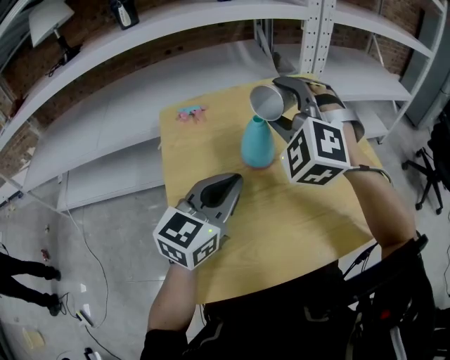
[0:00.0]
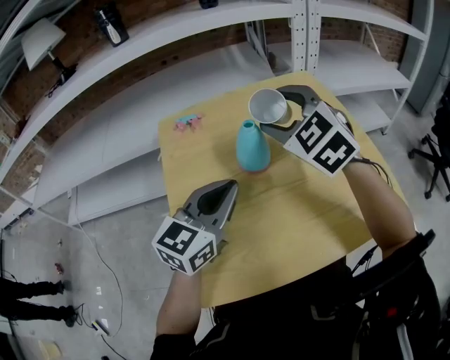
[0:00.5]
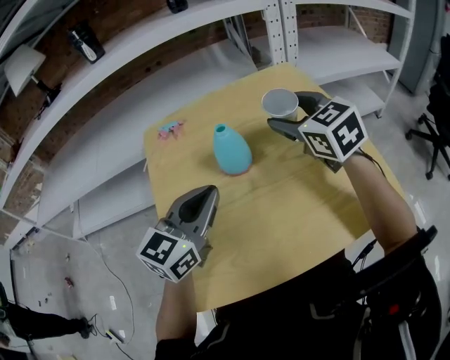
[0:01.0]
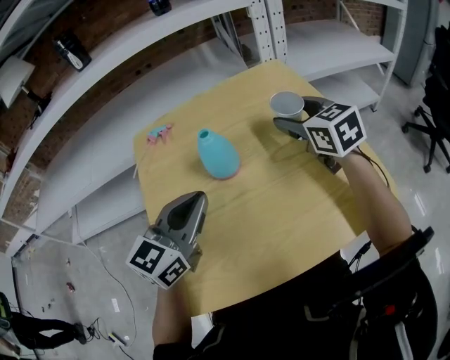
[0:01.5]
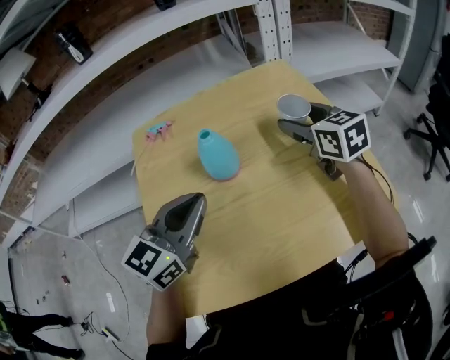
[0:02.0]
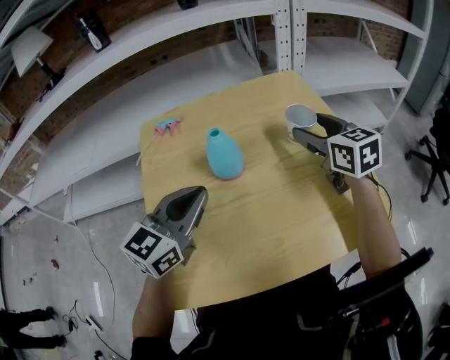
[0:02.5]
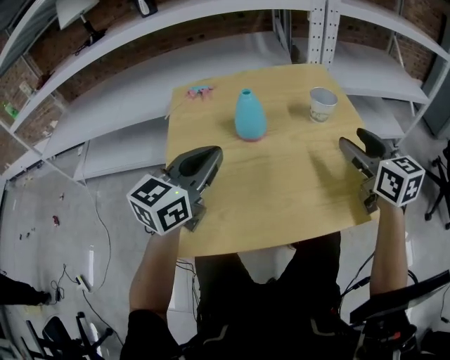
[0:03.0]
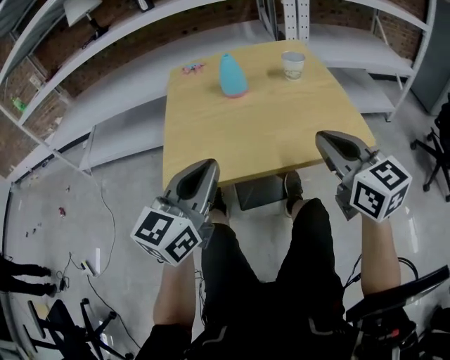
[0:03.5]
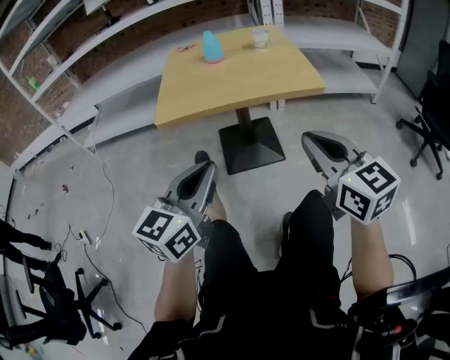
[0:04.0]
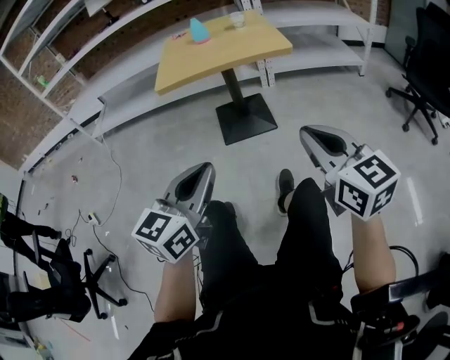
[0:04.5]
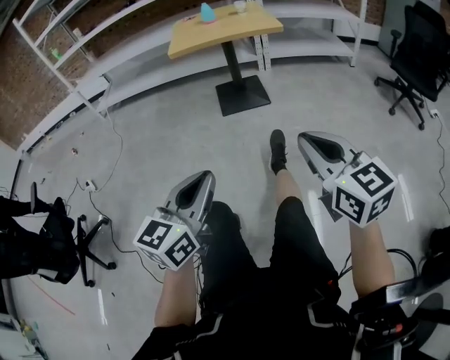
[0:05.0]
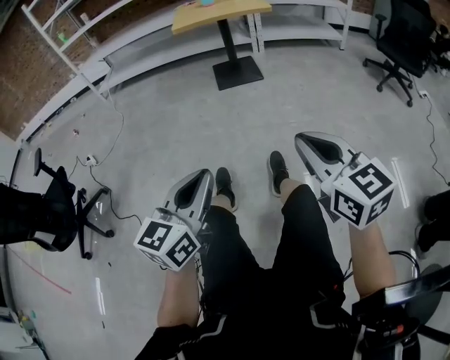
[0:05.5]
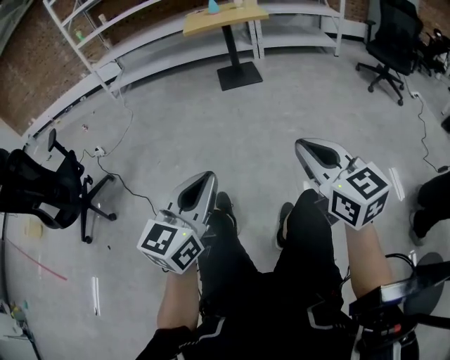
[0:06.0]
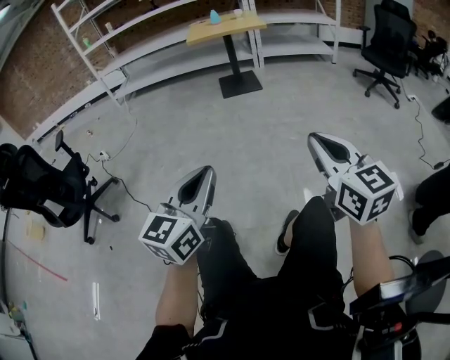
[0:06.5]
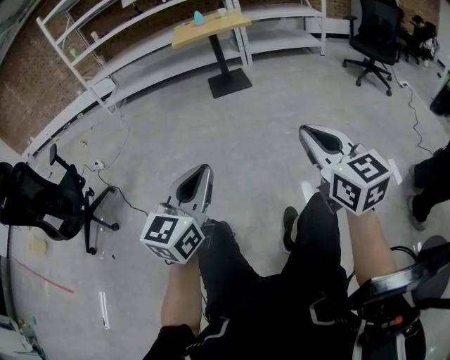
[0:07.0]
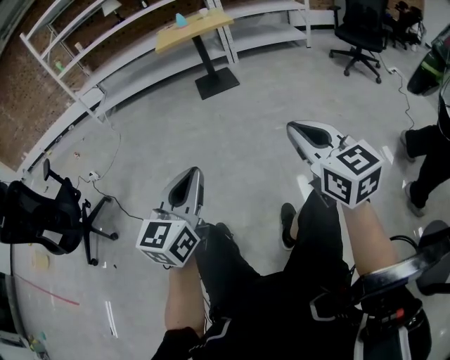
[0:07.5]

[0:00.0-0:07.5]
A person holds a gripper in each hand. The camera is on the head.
0:00.0 to 0:02.0: The right gripper moves to the right and downward, some 20 cm, and rolls clockwise, seen from behind, by some 70 degrees.
0:02.0 to 0:04.0: Both grippers are carried backward, about 50 cm. The right gripper closes up.
0:04.0 to 0:05.5: The pair of grippers is taken backward, about 70 cm.
0:05.5 to 0:07.5: The two grippers go approximately 20 cm backward.

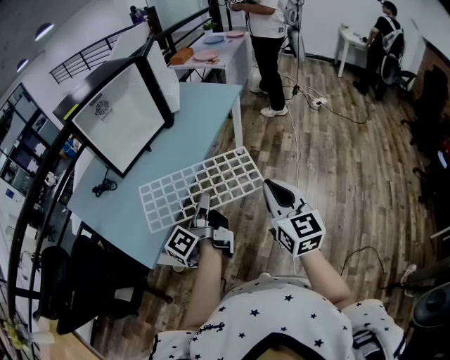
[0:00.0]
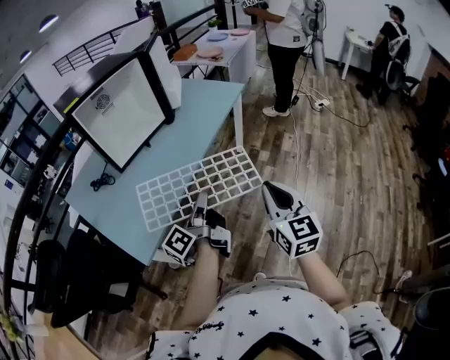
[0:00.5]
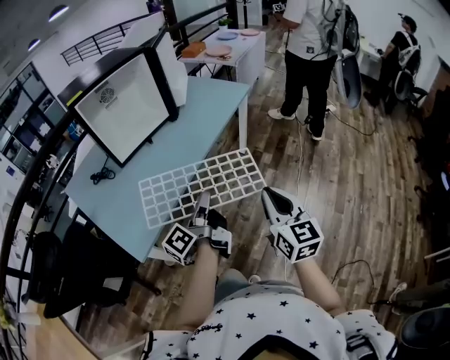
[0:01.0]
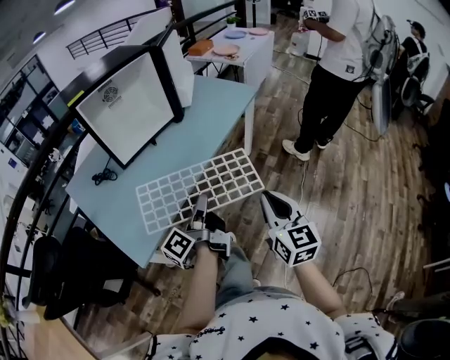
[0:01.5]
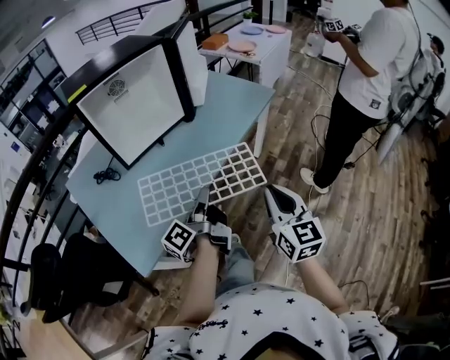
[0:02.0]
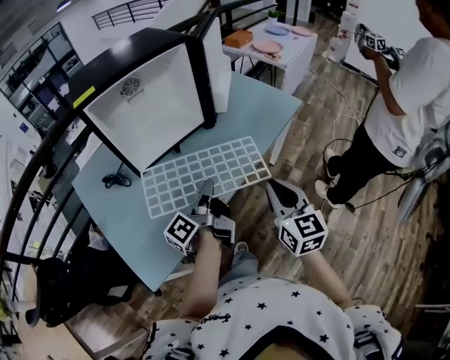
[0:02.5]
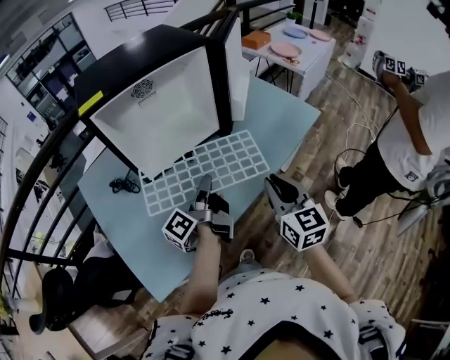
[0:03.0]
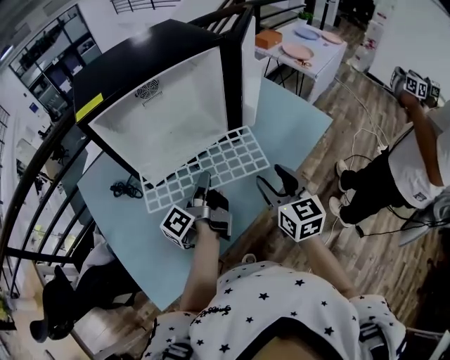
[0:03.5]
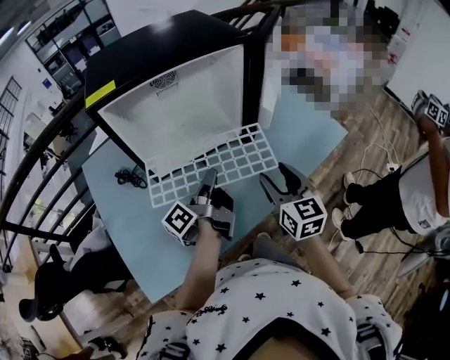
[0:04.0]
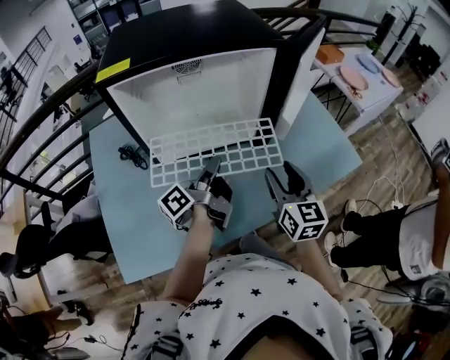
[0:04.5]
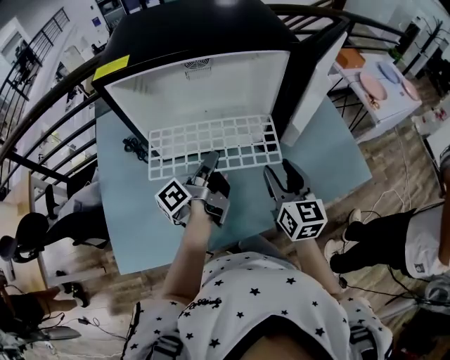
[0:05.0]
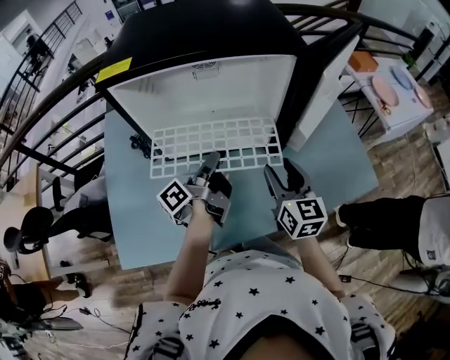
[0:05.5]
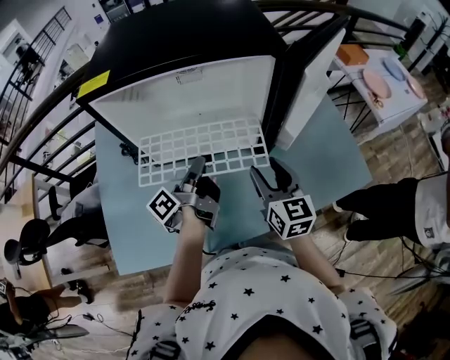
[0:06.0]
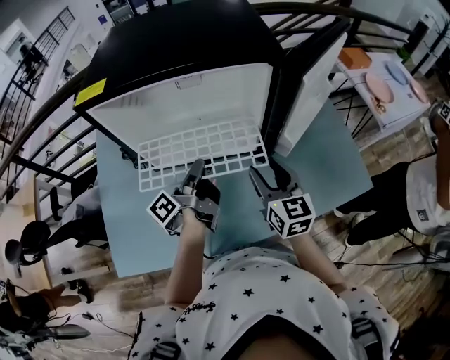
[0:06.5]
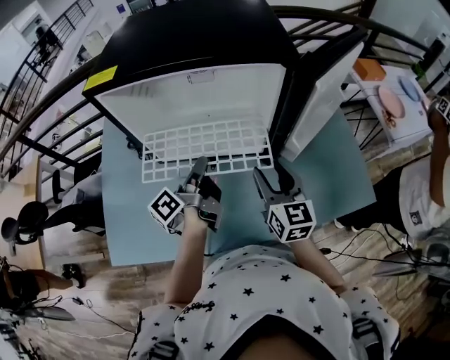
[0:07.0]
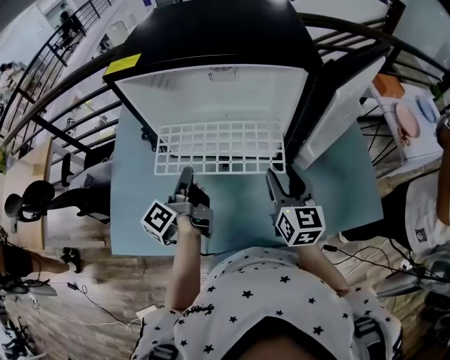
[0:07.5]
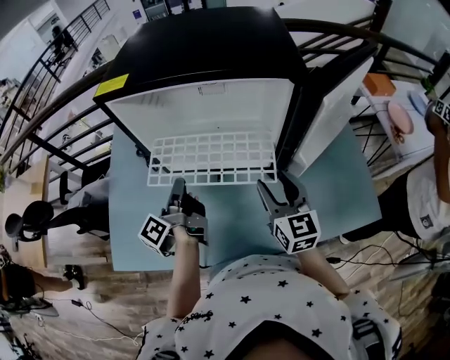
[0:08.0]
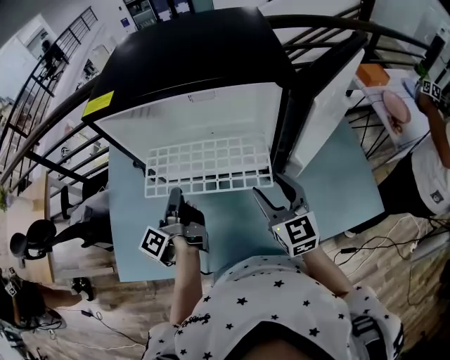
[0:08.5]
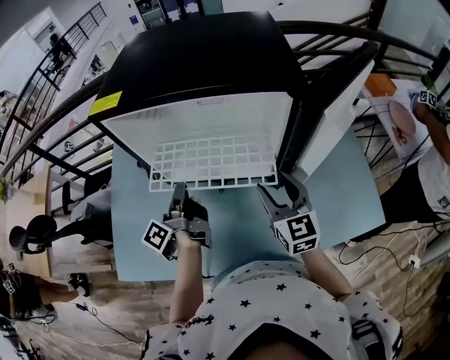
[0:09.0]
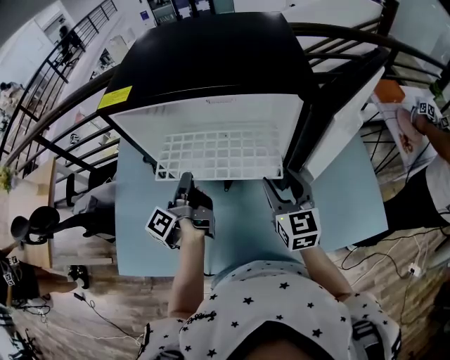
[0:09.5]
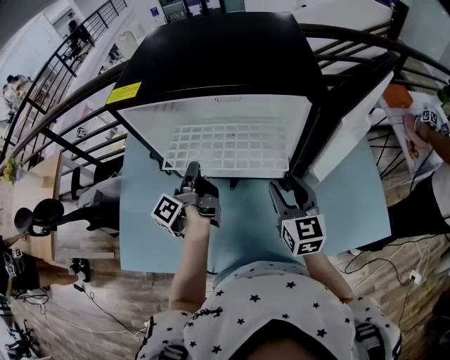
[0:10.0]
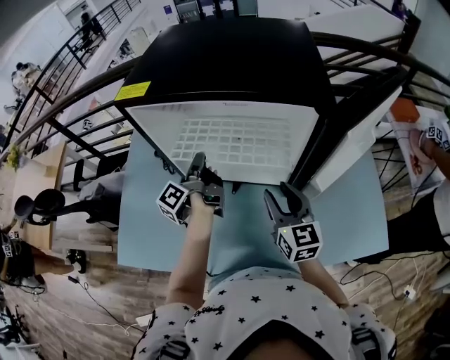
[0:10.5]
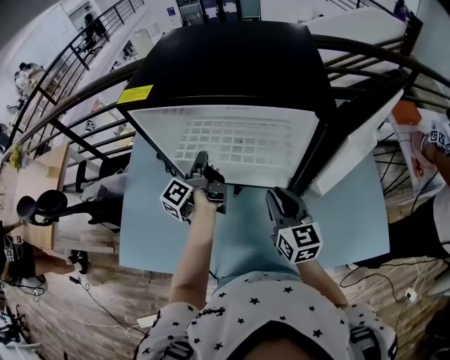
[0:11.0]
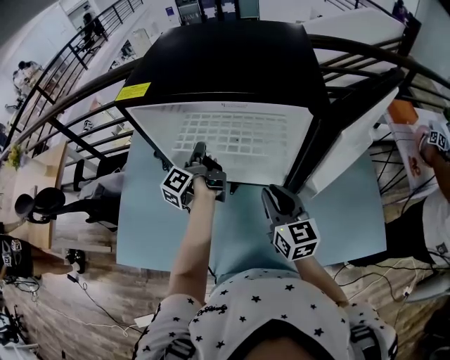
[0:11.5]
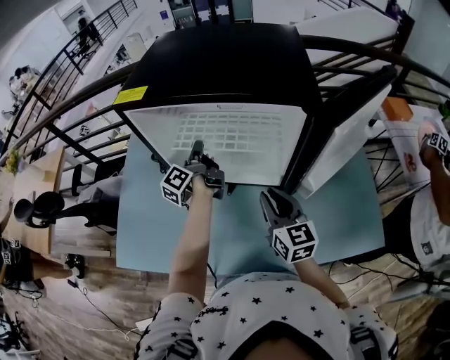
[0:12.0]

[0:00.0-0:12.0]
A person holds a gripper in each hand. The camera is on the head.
0:00.0 to 0:02.0: The right gripper shifts by about 15 cm.
0:02.0 to 0:04.0: The right gripper ends up about 35 cm from where it was, swivels some 20 degrees, and opens.
0:04.0 to 0:06.0: The right gripper changes place by roughly 10 cm.
0:10.0 to 0:12.0: The right gripper closes its fingers.

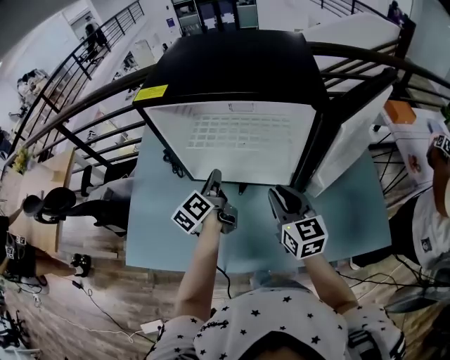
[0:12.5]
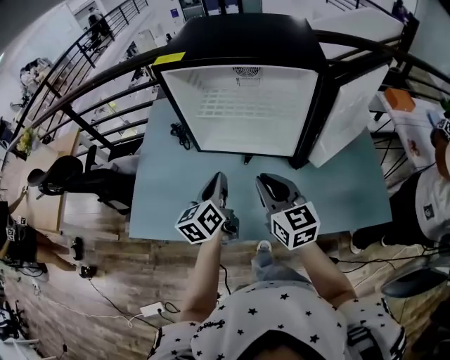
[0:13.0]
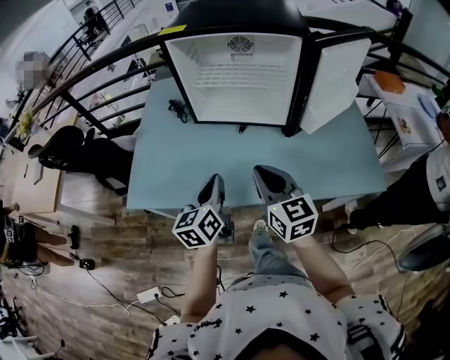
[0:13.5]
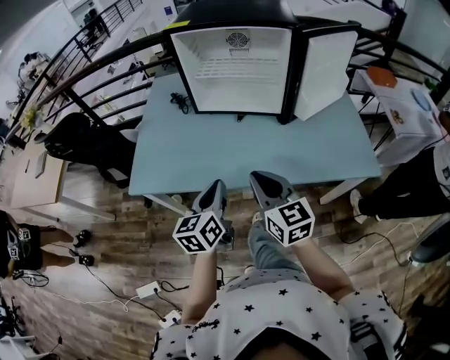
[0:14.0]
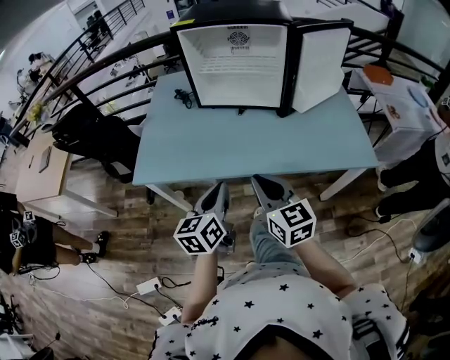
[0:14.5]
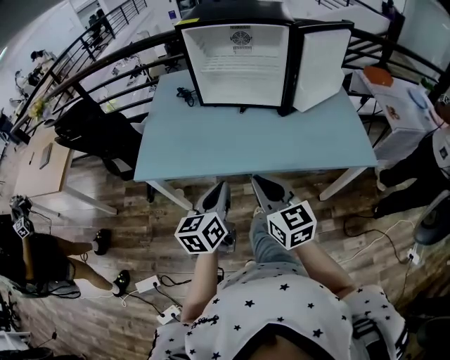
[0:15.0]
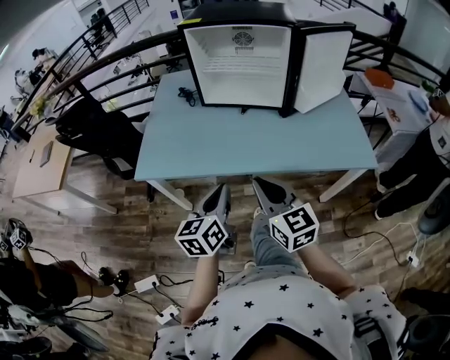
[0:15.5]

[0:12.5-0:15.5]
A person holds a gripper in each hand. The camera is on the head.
0:12.5 to 0:14.0: The right gripper shifts by some 30 cm.
0:14.0 to 0:15.5: The right gripper moves some 10 cm.

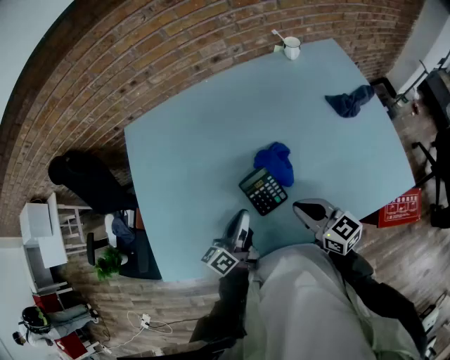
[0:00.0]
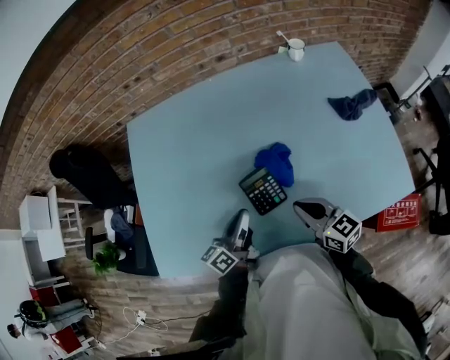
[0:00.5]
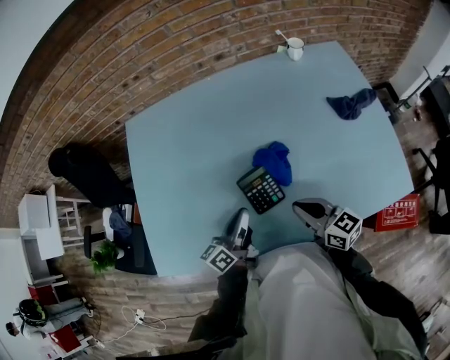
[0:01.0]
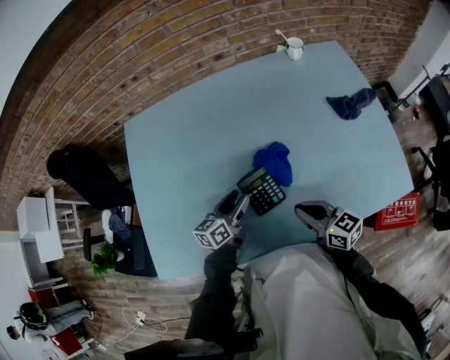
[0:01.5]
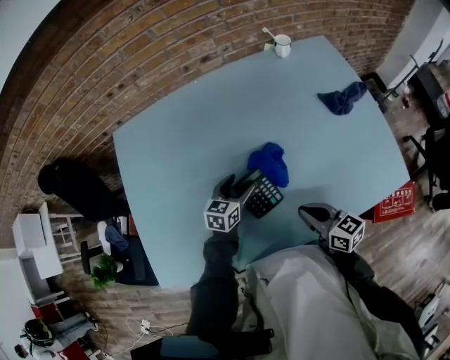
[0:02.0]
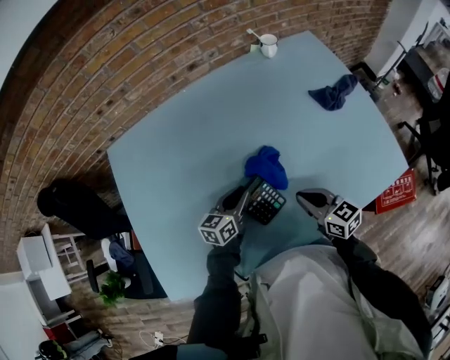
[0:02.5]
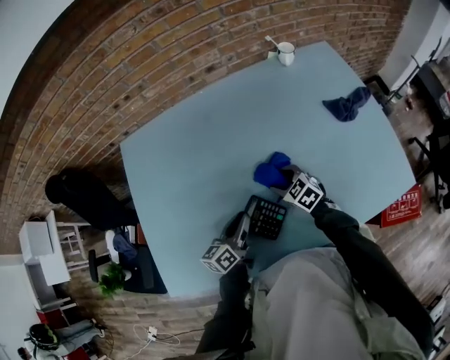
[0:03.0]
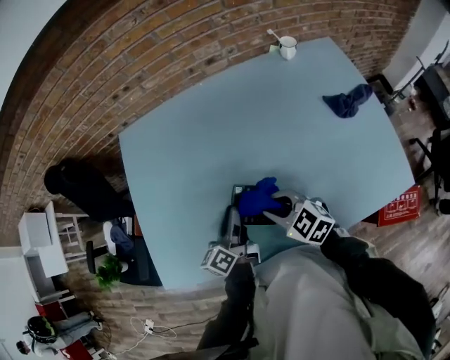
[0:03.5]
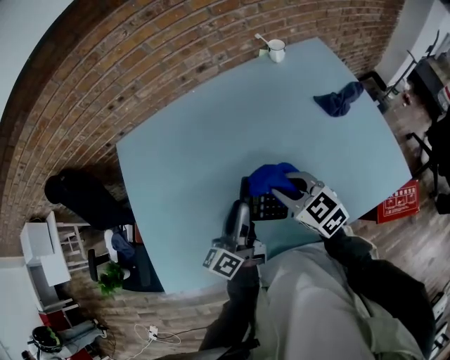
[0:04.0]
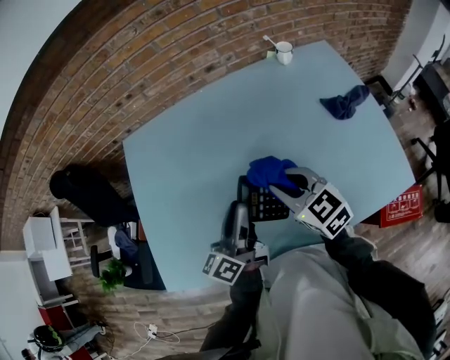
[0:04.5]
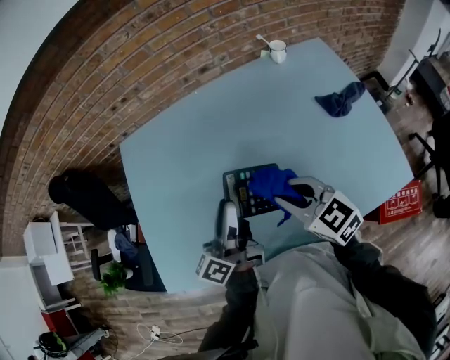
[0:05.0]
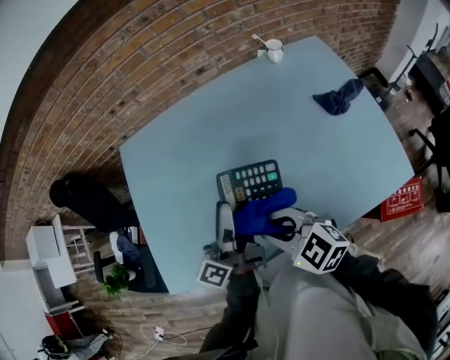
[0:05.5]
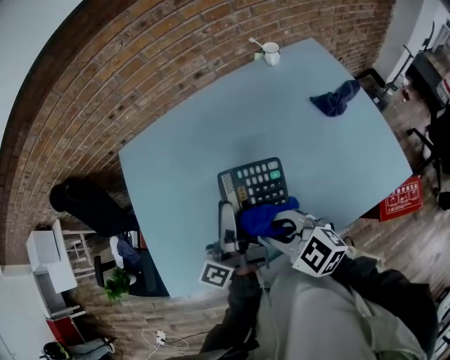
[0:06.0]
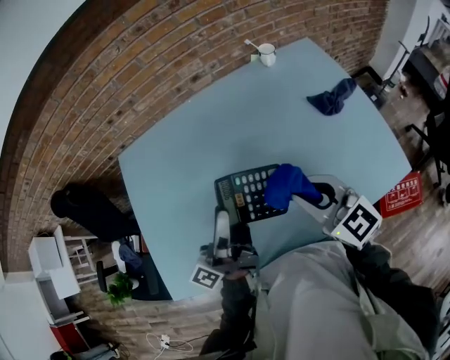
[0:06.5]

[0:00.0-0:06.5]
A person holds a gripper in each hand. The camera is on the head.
0:00.0 to 0:02.0: The left gripper shifts approximately 15 cm forward and downward, changes its angle by roughly 50 degrees, and opens its fingers. The right gripper ends up about 5 cm from where it was.
0:02.0 to 0:04.5: The left gripper heads upward, covering some 20 cm, tilts its fingers approximately 30 degrees upward, and closes up. The right gripper ends up approximately 15 cm from where it was, rotates roughly 30 degrees, and opens its fingers.
0:04.5 to 0:06.5: The left gripper is displaced upward by approximately 5 cm, and changes its angle by some 30 degrees. Meanwhile the right gripper is displaced backward, upward and to the right by roughly 10 cm.
